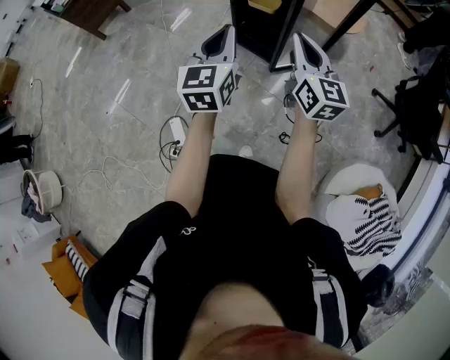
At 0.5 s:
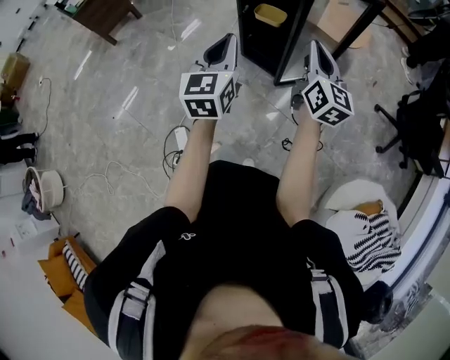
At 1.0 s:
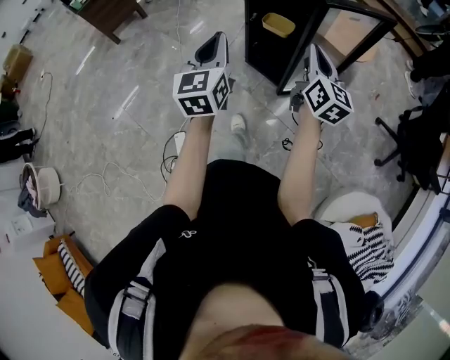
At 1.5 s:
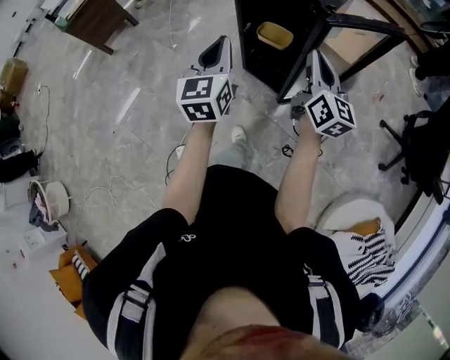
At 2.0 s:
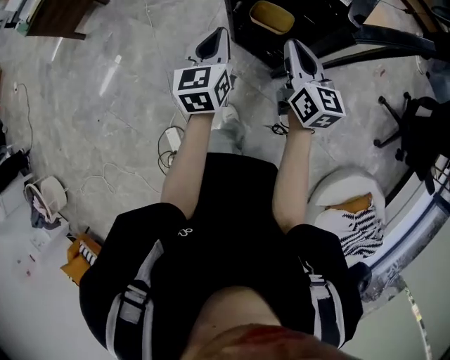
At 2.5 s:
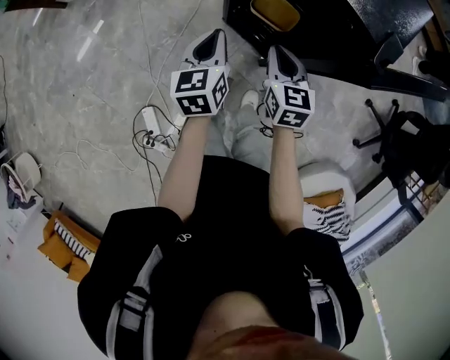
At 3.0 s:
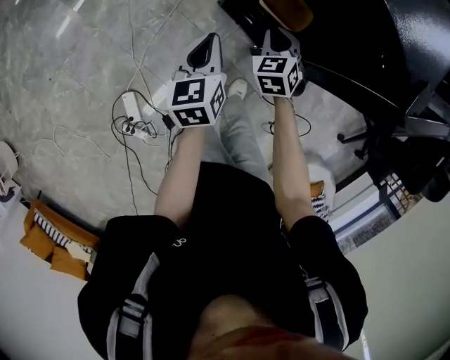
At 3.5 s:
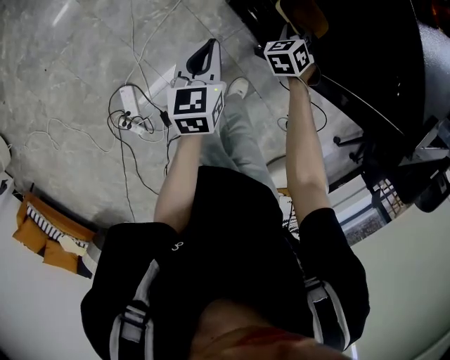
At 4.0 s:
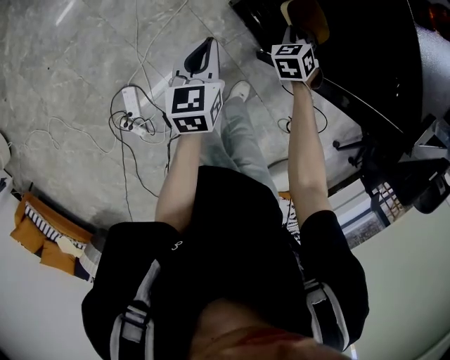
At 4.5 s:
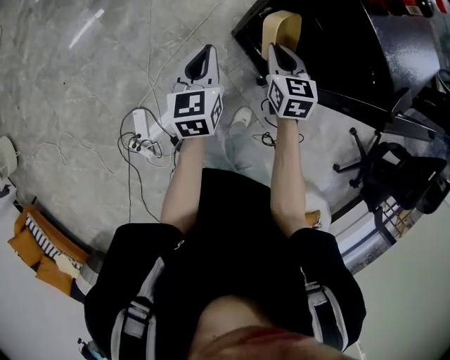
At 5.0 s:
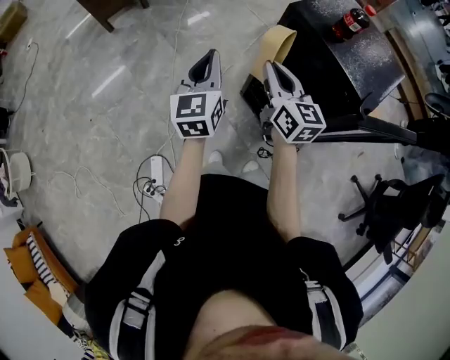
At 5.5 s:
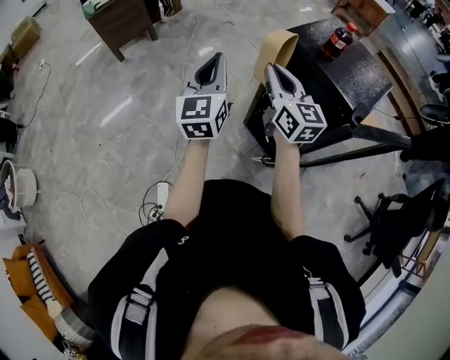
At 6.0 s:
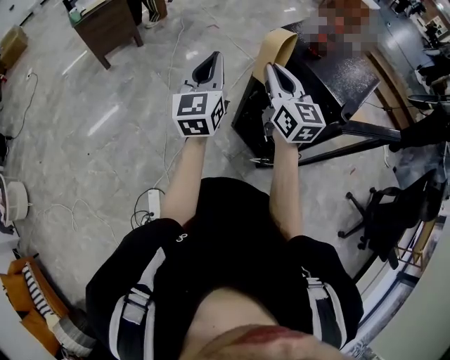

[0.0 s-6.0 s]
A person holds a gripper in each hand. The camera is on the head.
0.0 to 2.0 s: Both grippers move forward, some 35 cm.
2.0 to 4.0 s: The right gripper moves downward and forward, roughly 35 cm, and tilts its fingers approximately 50 degrees downward. The left gripper heads downward and to the left, covering roughly 20 cm, and swivels some 20 degrees.
4.0 to 6.0 s: Both grippers travel together upward, some 40 cm. The right gripper tips its fingers upward by approximately 60 degrees. Meanwhile the left gripper tips its fingers upward by approximately 40 degrees.

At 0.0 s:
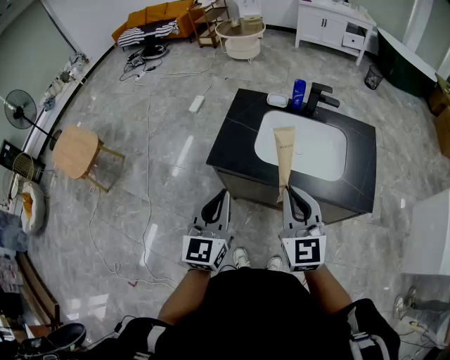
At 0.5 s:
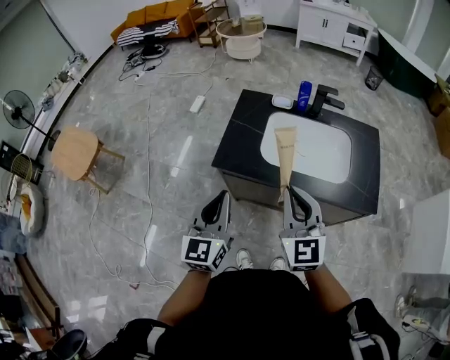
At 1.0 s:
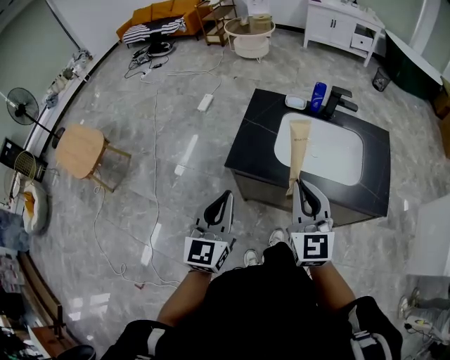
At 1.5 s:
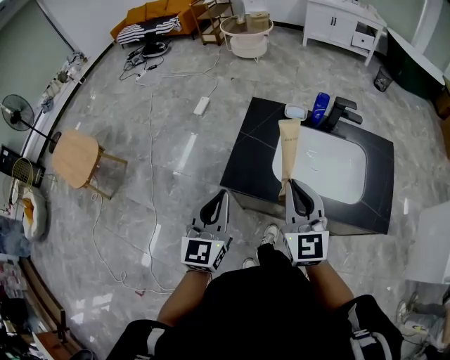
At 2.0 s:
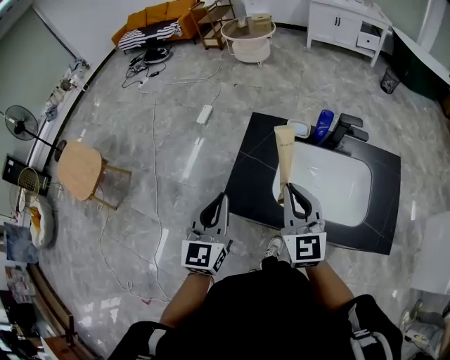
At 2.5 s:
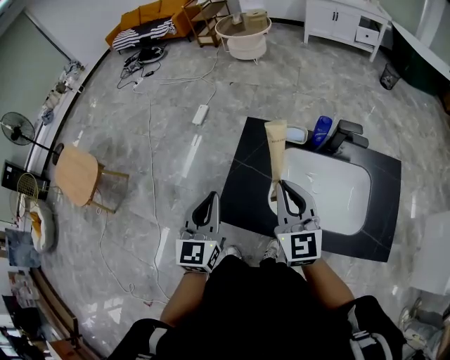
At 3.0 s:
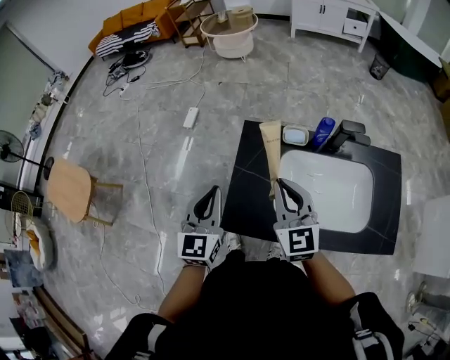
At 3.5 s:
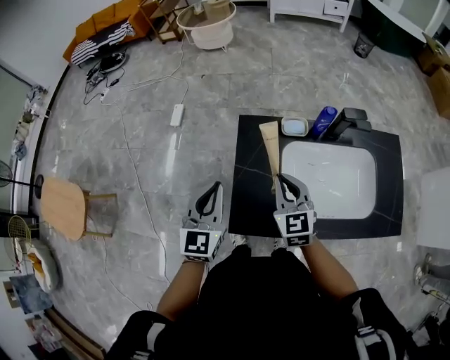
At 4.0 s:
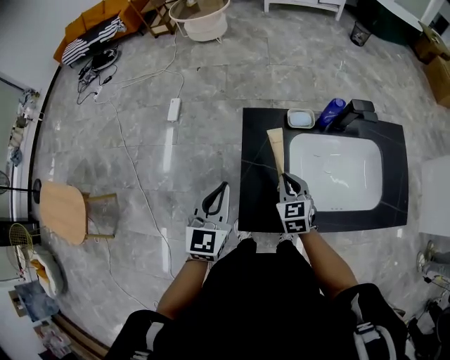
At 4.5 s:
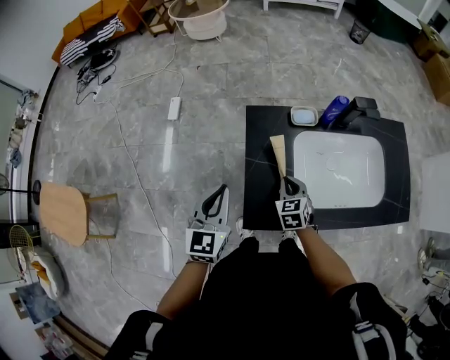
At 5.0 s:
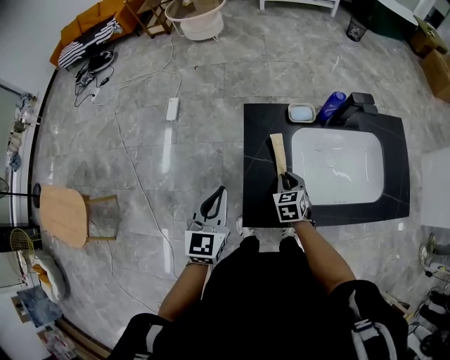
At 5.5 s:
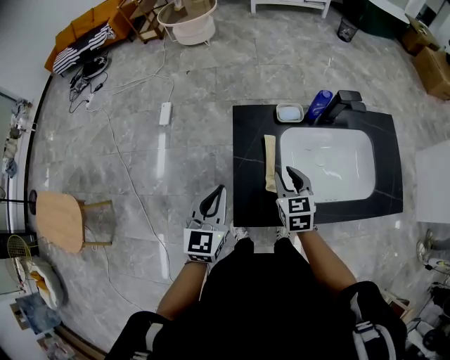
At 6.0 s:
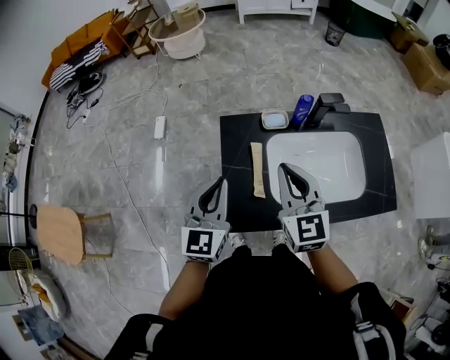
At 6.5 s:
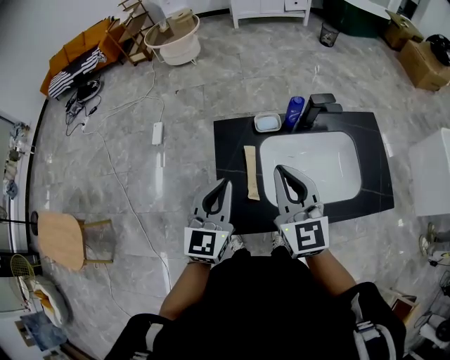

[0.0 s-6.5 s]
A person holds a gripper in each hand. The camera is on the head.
0.0 to 2.0 s: Both grippers travel together forward, approximately 20 cm.
2.0 to 4.5 s: The right gripper moves downward and forward, some 30 cm, and tilts its fingers approximately 40 degrees downward; the left gripper shifts roughly 20 cm forward, downward and to the left, and changes its angle by approximately 20 degrees.
4.5 to 6.5 s: The left gripper is displaced to the right and upward by approximately 15 cm, while the right gripper moves upward, approximately 30 cm, points its fingers about 40 degrees further upward, and opens, then closes again.

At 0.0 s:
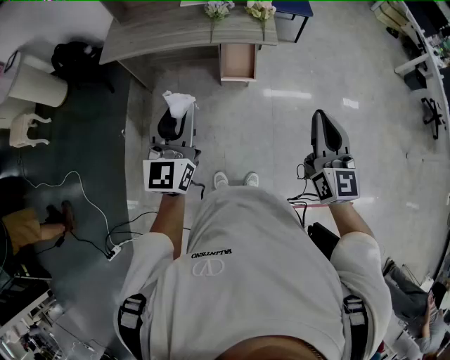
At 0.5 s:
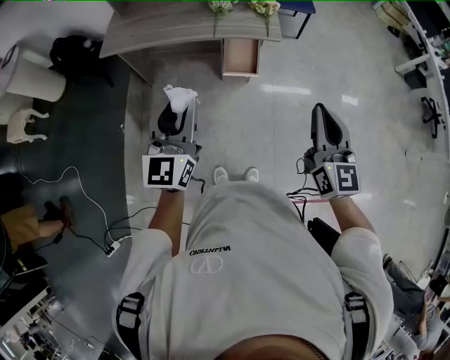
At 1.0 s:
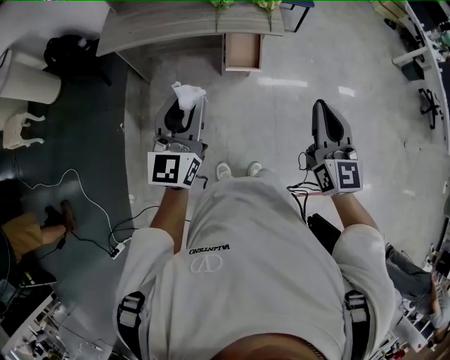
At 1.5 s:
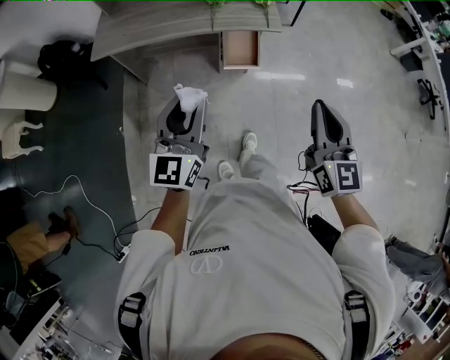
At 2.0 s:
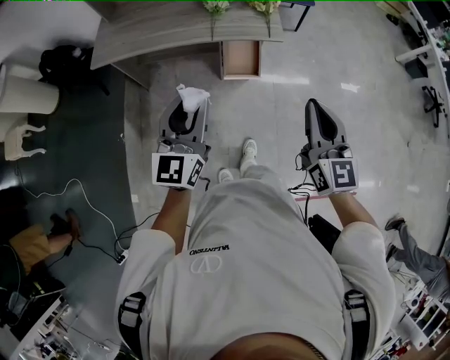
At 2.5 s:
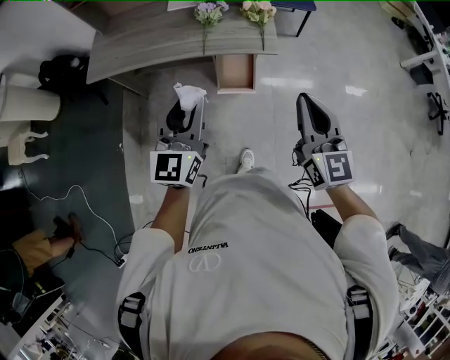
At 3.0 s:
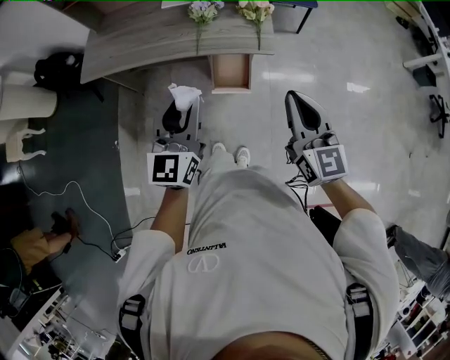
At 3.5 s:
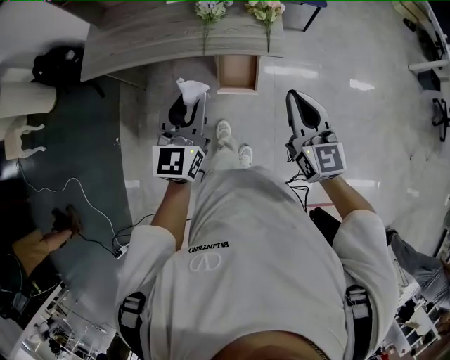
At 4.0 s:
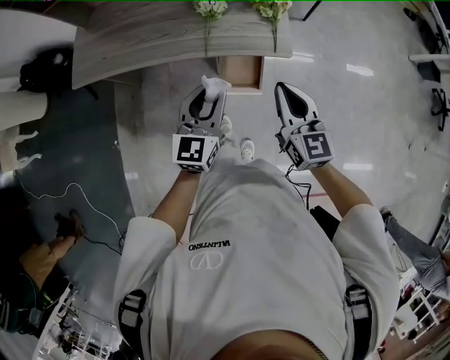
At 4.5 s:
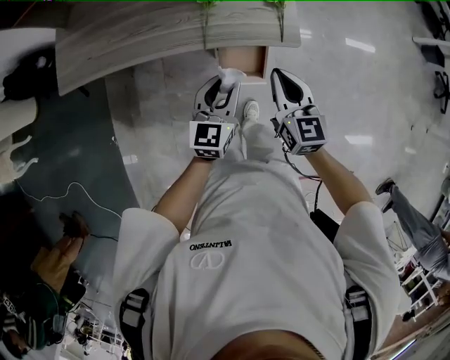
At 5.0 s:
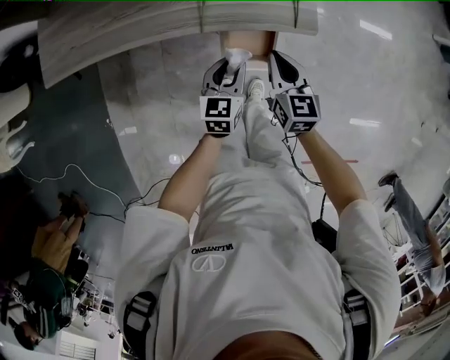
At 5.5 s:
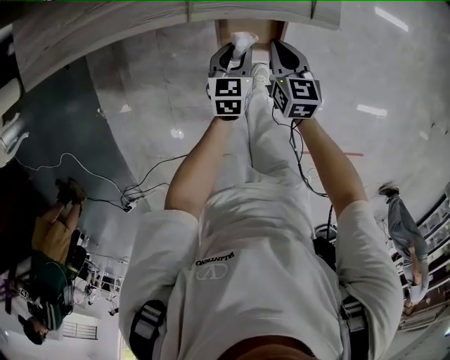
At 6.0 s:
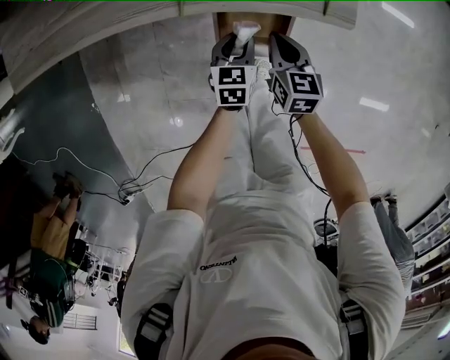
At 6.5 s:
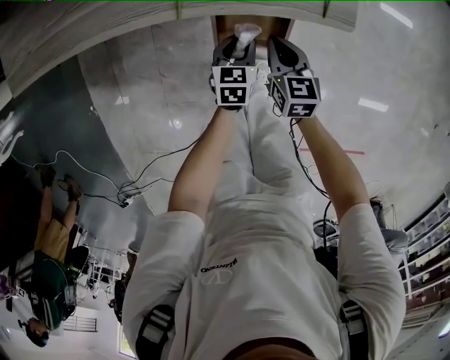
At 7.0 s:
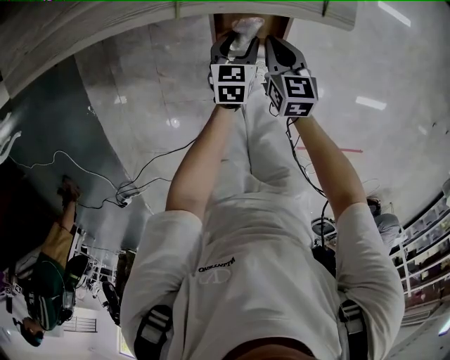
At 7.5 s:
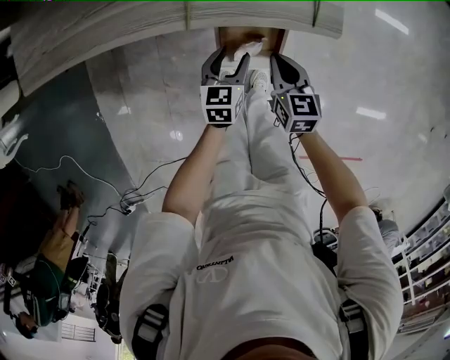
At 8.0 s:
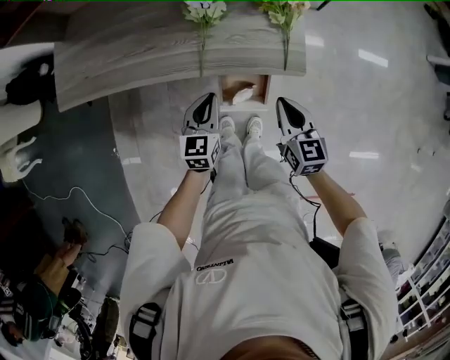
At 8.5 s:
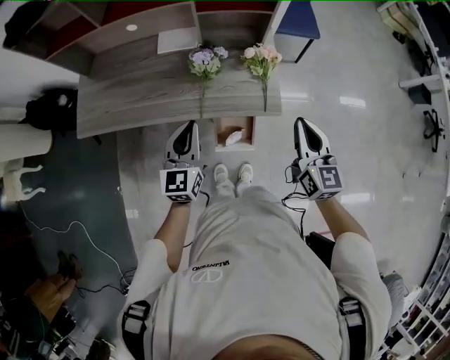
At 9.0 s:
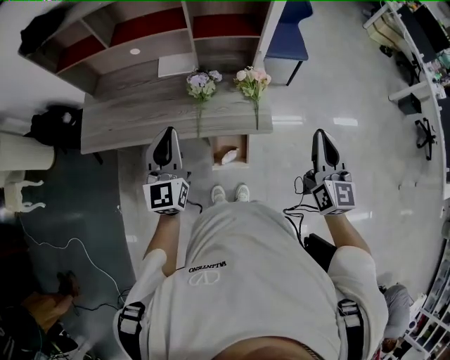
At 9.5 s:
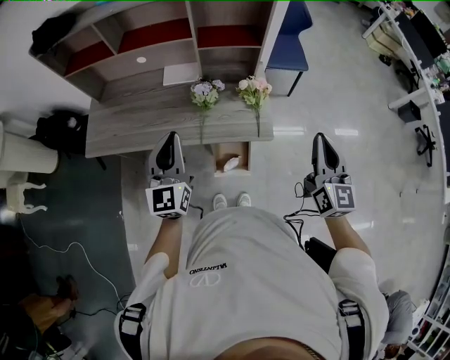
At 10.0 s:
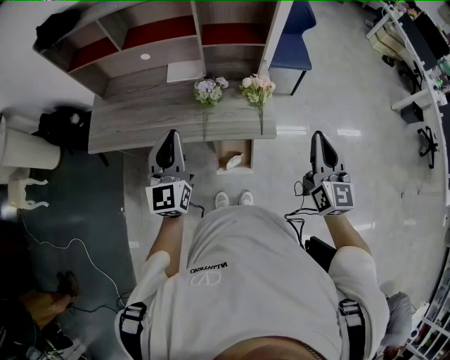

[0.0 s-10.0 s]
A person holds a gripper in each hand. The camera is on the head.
0.0 to 2.0 s: The right gripper travels forward and to the left by some 10 cm. The left gripper moves forward, some 10 cm.
2.0 to 4.0 s: Both grippers travel together forward and downward, roughly 30 cm.
4.0 to 6.0 s: Both grippers move downward, some 40 cm. The left gripper tilts its fingers approximately 30 degrees downward; the right gripper changes its angle by roughly 30 degrees.
6.0 to 8.0 s: The grippers both shift upward by roughly 25 cm. The left gripper closes its fingers.
8.0 to 10.0 s: The two grippers go about 35 cm upward. The left gripper tips its fingers upward by roughly 30 degrees, while the right gripper changes its angle by about 30 degrees.

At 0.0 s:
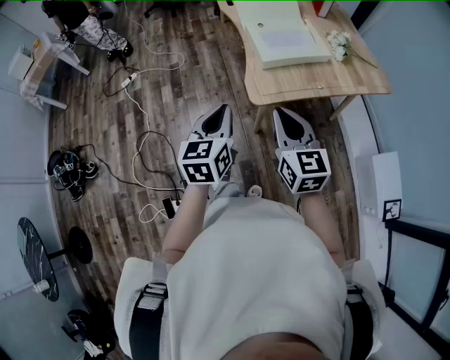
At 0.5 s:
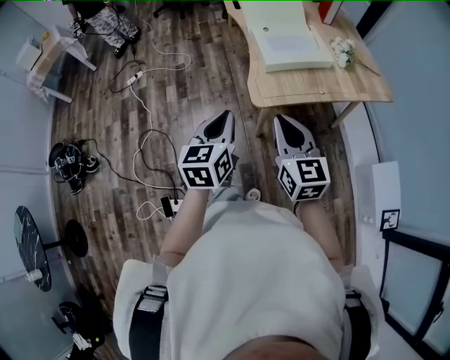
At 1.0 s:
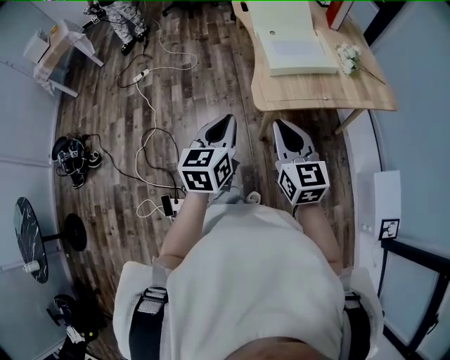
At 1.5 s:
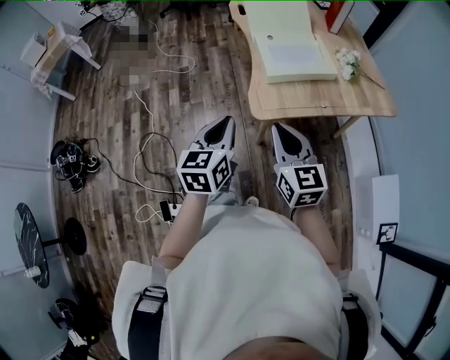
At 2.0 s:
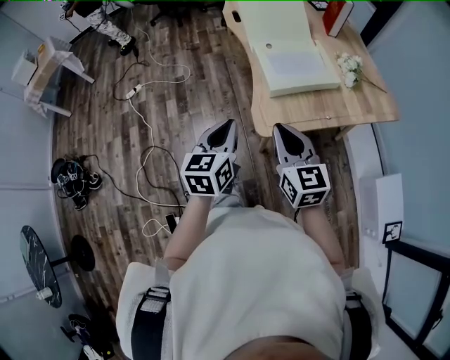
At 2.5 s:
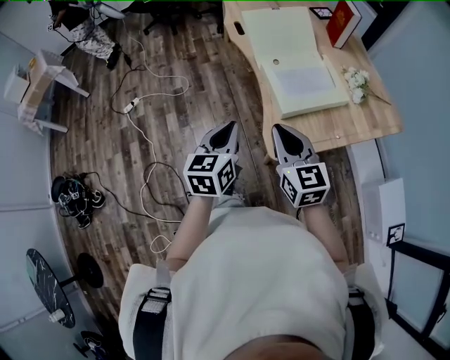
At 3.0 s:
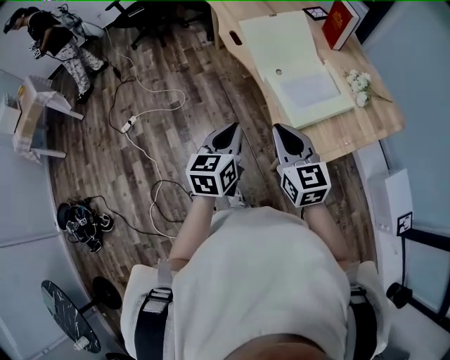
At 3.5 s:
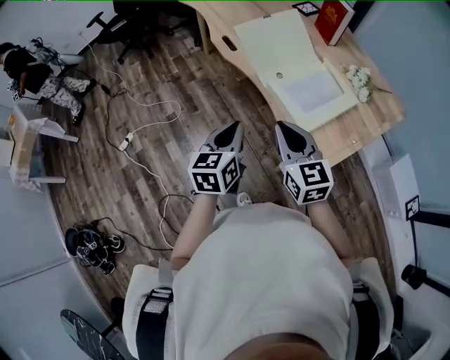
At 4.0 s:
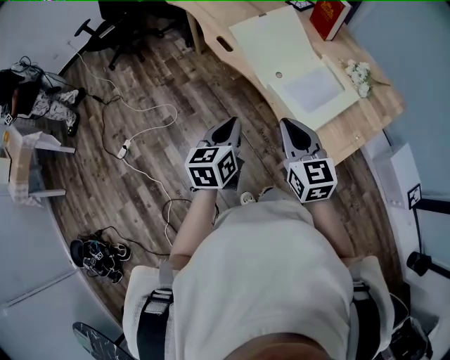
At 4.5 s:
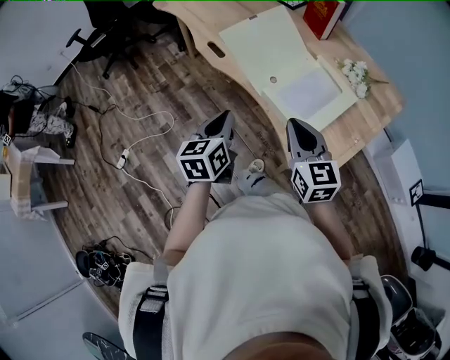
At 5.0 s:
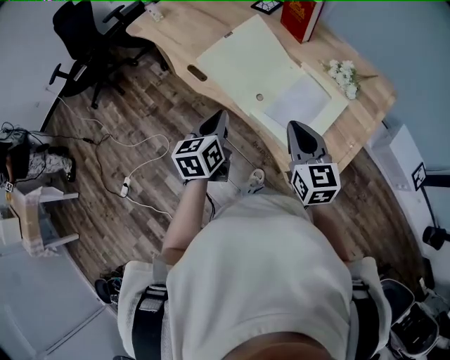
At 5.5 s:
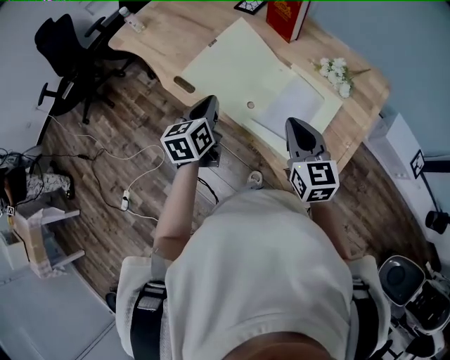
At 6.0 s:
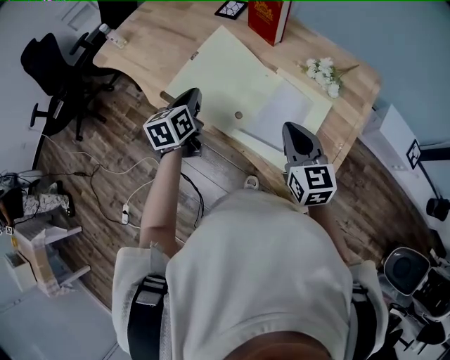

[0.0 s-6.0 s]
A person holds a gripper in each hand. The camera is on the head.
0.0 to 2.0 s: Both grippers move forward, some 10 cm.
2.0 to 4.0 s: The two grippers go approximately 25 cm forward and to the left. The left gripper turns by some 20 degrees.
4.0 to 6.0 s: The right gripper goes some 20 cm forward and to the right, and swivels some 20 degrees; the left gripper is displaced forward by some 30 cm.
